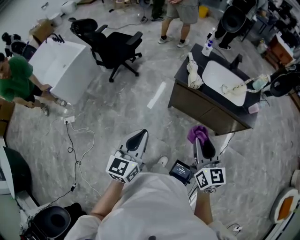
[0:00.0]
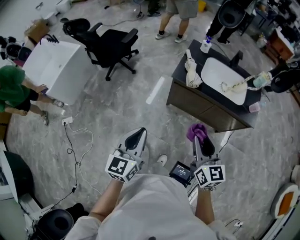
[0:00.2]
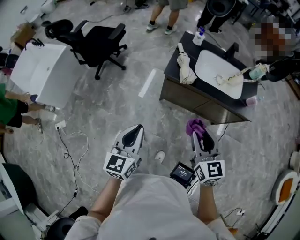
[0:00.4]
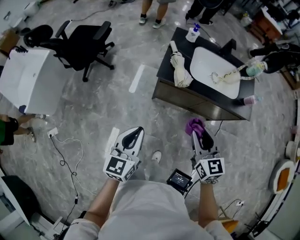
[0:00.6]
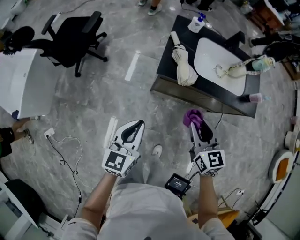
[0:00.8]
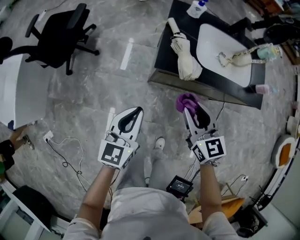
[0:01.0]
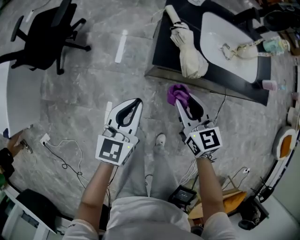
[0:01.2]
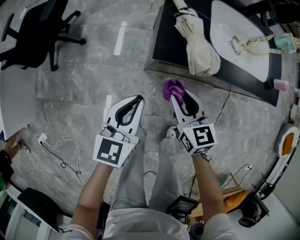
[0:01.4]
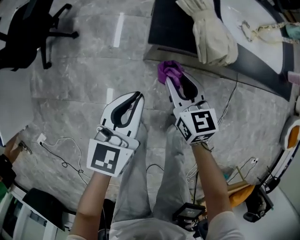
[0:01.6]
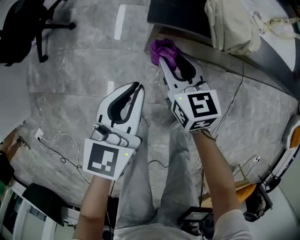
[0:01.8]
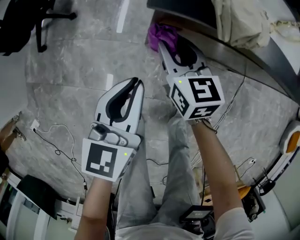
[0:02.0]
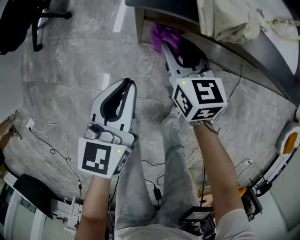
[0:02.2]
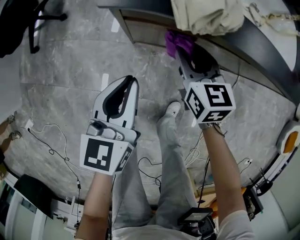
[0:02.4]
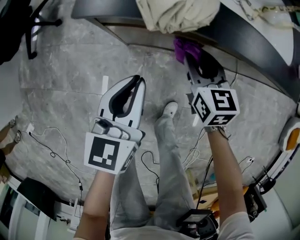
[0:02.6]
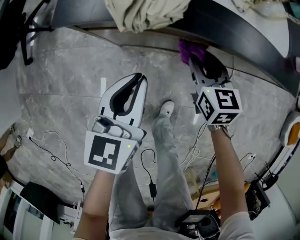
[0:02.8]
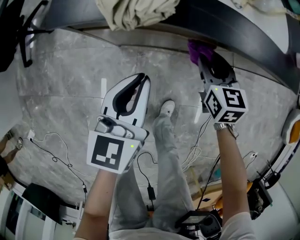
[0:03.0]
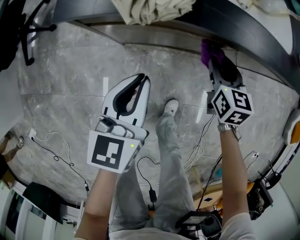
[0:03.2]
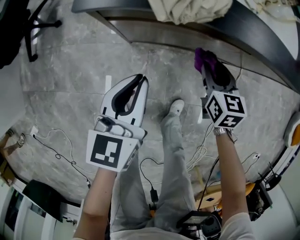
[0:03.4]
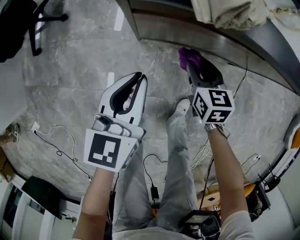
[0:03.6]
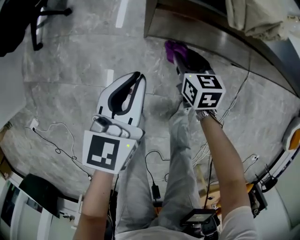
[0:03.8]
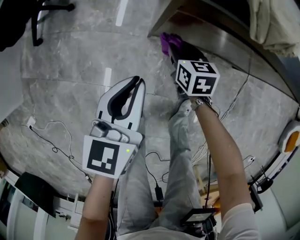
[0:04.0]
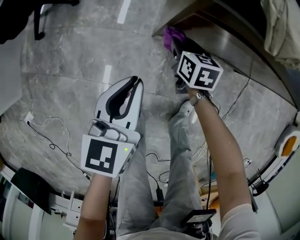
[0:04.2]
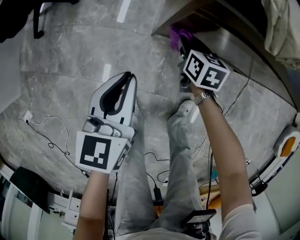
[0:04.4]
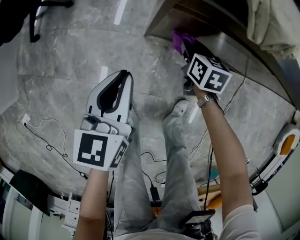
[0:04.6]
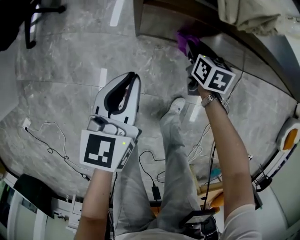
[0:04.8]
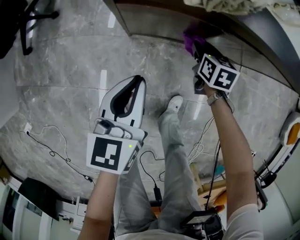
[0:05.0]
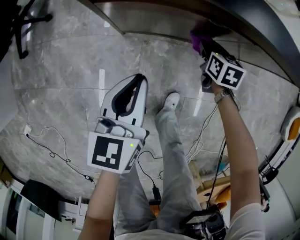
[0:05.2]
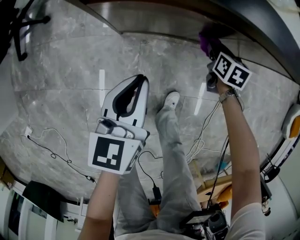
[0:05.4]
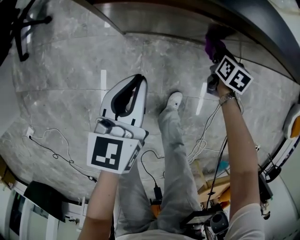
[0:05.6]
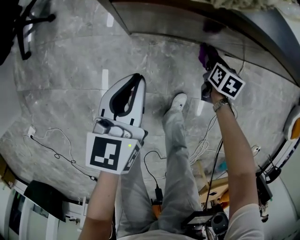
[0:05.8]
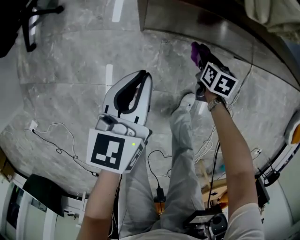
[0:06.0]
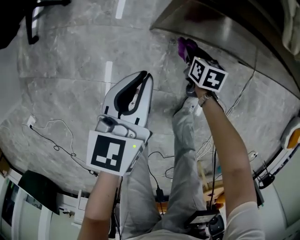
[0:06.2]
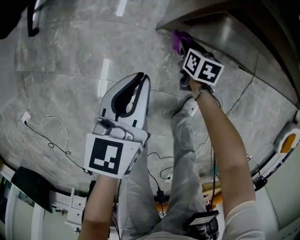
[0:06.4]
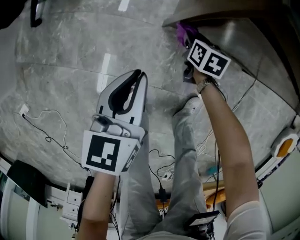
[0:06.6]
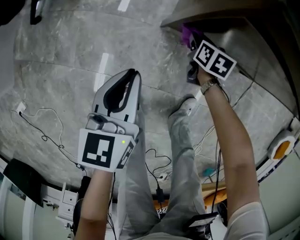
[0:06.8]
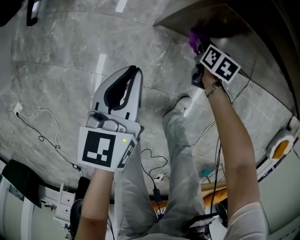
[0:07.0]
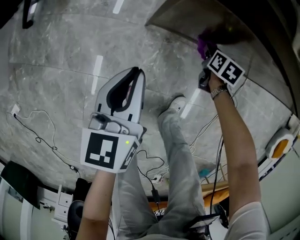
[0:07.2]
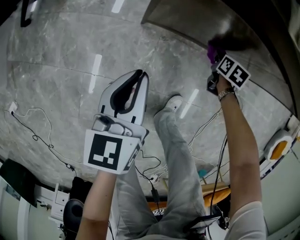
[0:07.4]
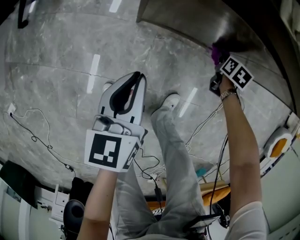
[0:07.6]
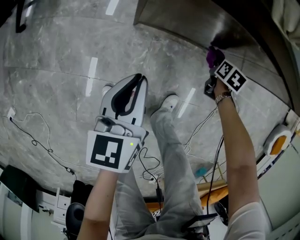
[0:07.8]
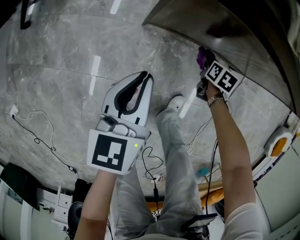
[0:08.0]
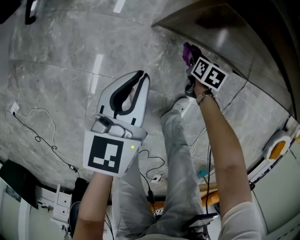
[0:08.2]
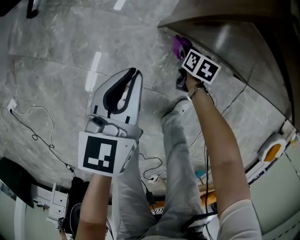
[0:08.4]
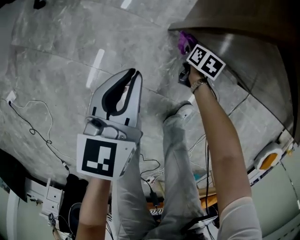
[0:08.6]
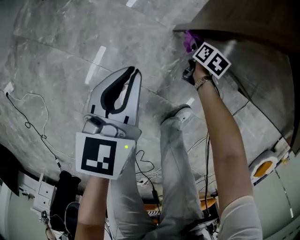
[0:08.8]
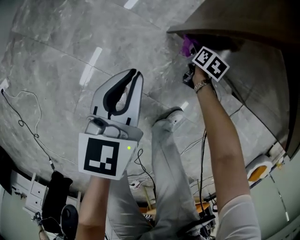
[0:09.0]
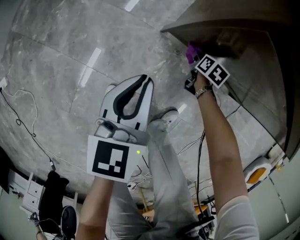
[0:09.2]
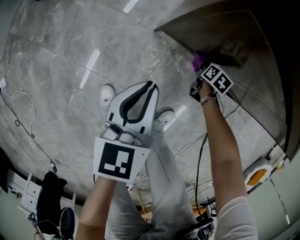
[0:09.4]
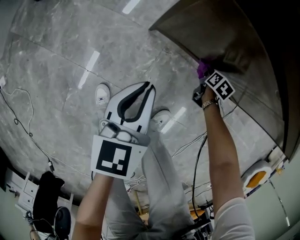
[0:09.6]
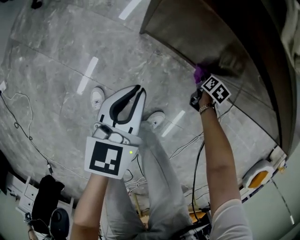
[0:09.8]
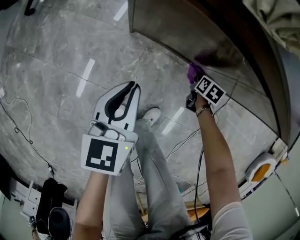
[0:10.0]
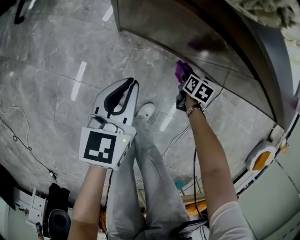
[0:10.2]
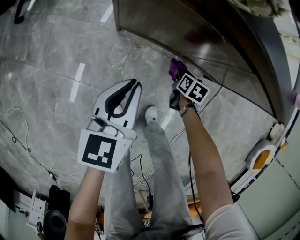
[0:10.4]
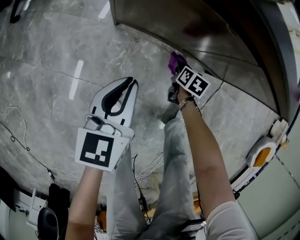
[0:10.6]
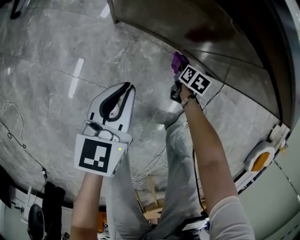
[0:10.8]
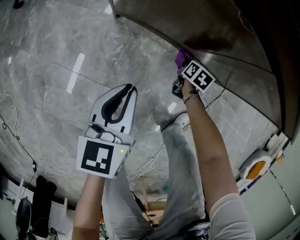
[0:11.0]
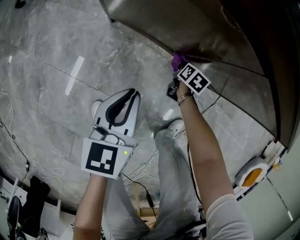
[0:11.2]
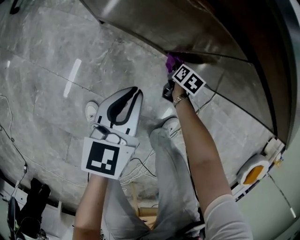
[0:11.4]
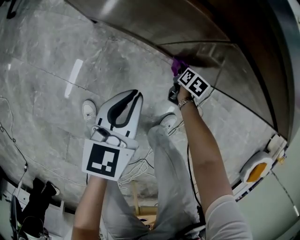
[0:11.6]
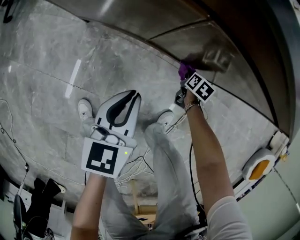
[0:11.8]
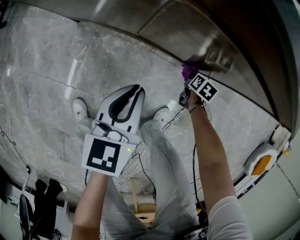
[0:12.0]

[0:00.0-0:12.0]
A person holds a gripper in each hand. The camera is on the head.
0:00.0 to 0:01.6: The right gripper is displaced downward and forward by some 60 cm, and swivels about 20 degrees. The left gripper is displaced forward and downward by approximately 50 cm, and changes its angle by some 30 degrees.
0:01.6 to 0:03.0: Both grippers move to the right, about 20 cm.
0:03.0 to 0:04.4: The left gripper shifts about 20 cm to the left. Meanwhile the right gripper heads to the left and downward, covering about 30 cm.
0:04.4 to 0:06.0: The right gripper heads to the right and downward, covering some 20 cm. The left gripper goes approximately 10 cm to the right.
0:06.0 to 0:07.6: The right gripper travels to the right and forward by about 15 cm, while the left gripper moves approximately 10 cm to the left and comes back.
0:07.6 to 0:09.0: The left gripper shifts about 15 cm to the left, while the right gripper shifts about 30 cm to the left.
0:09.0 to 0:10.4: The right gripper travels to the right and backward by roughly 25 cm. Meanwhile the left gripper moves to the right, roughly 25 cm.
0:10.4 to 0:12.0: Both grippers travel together to the right, about 30 cm.

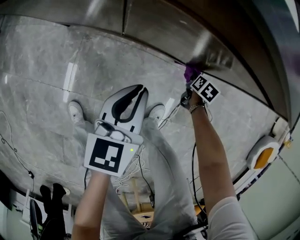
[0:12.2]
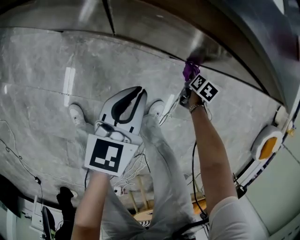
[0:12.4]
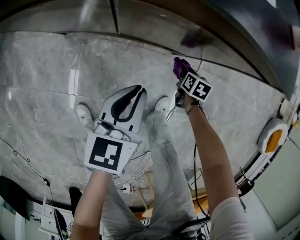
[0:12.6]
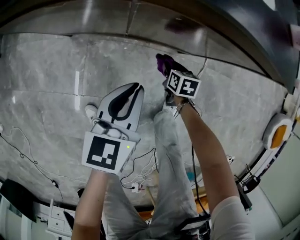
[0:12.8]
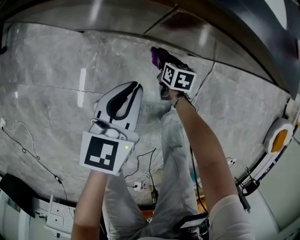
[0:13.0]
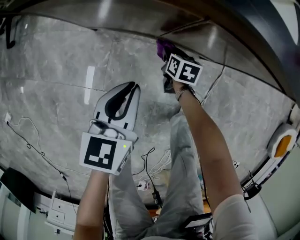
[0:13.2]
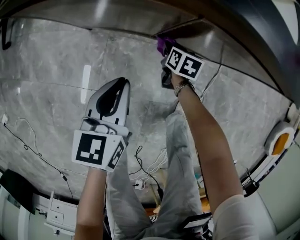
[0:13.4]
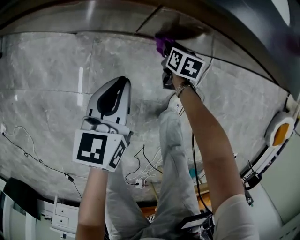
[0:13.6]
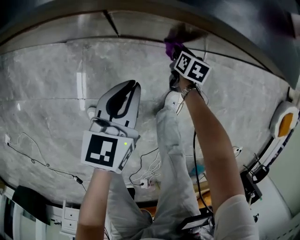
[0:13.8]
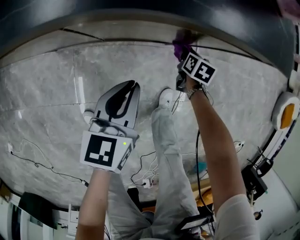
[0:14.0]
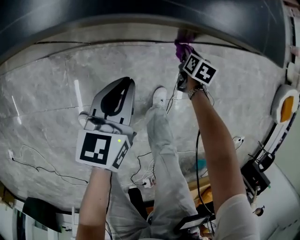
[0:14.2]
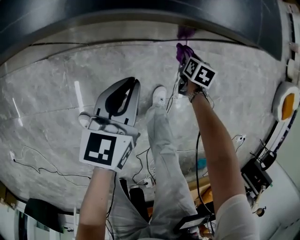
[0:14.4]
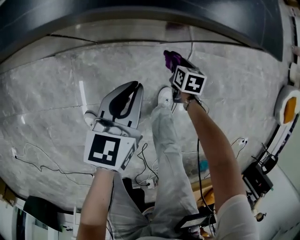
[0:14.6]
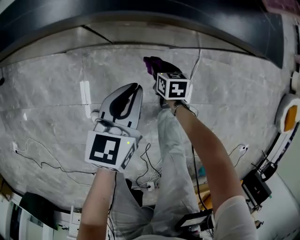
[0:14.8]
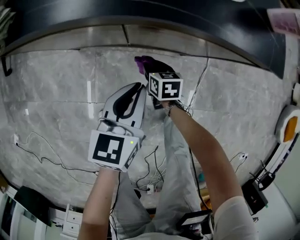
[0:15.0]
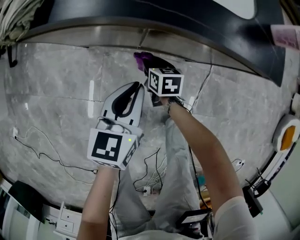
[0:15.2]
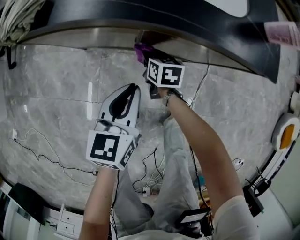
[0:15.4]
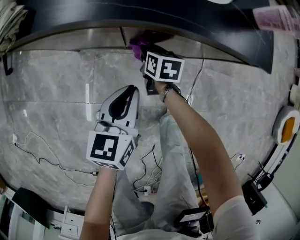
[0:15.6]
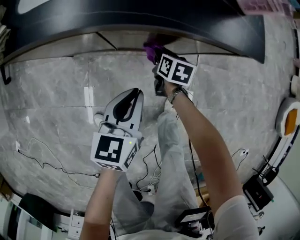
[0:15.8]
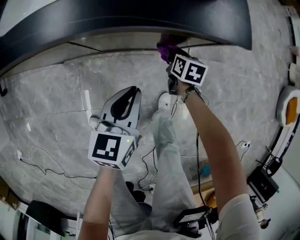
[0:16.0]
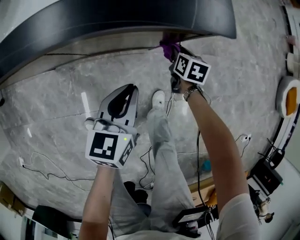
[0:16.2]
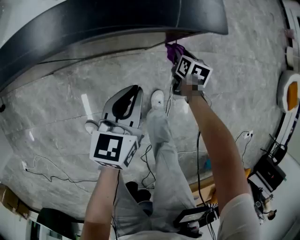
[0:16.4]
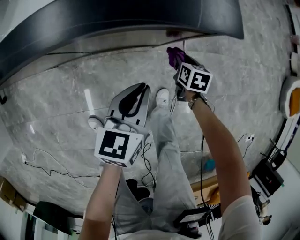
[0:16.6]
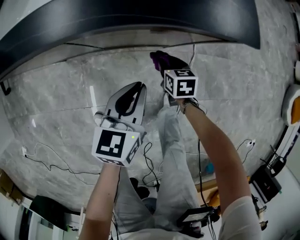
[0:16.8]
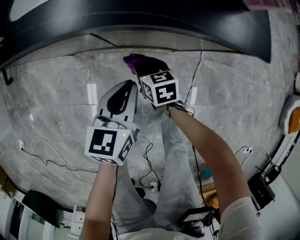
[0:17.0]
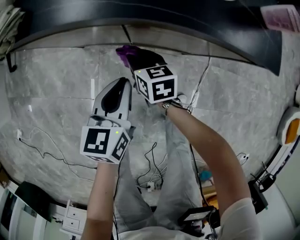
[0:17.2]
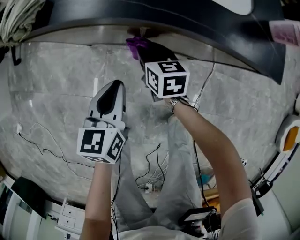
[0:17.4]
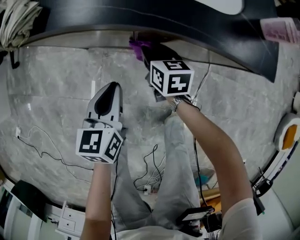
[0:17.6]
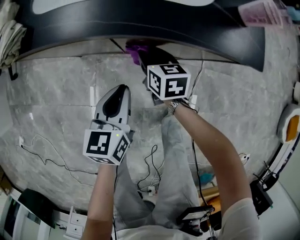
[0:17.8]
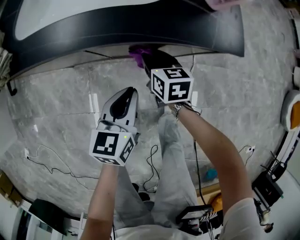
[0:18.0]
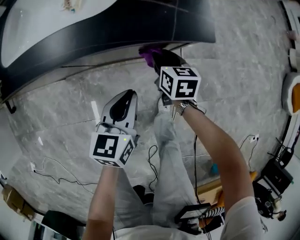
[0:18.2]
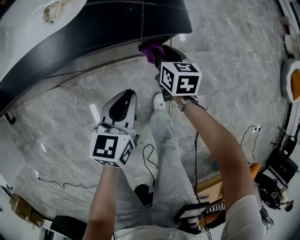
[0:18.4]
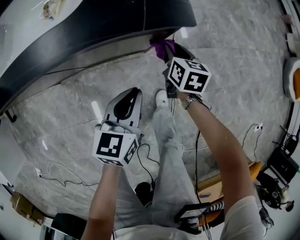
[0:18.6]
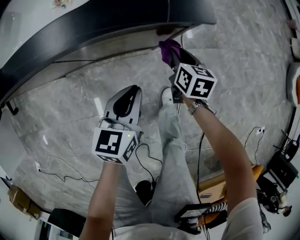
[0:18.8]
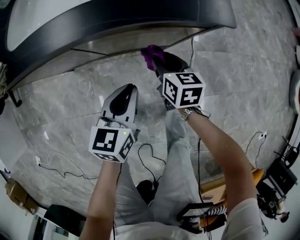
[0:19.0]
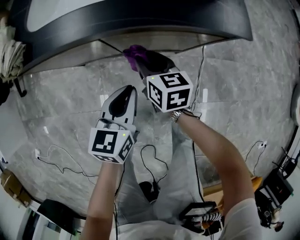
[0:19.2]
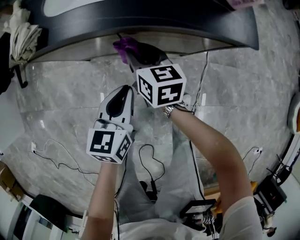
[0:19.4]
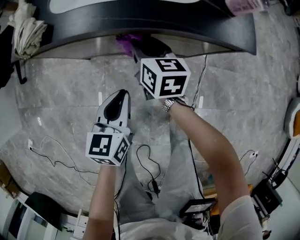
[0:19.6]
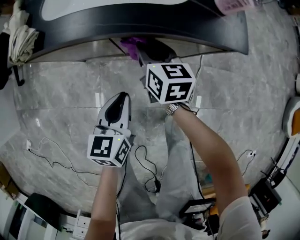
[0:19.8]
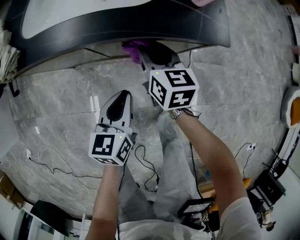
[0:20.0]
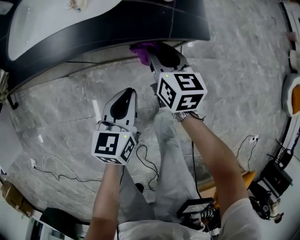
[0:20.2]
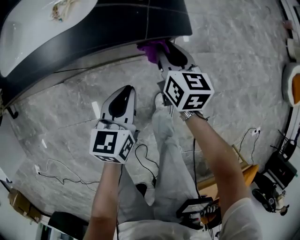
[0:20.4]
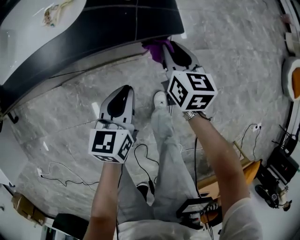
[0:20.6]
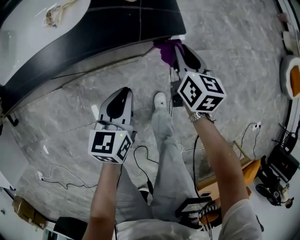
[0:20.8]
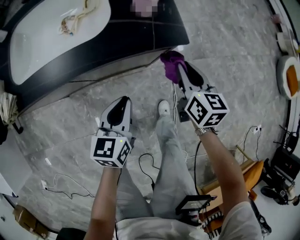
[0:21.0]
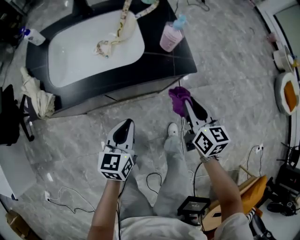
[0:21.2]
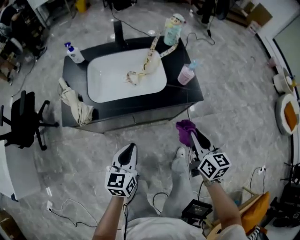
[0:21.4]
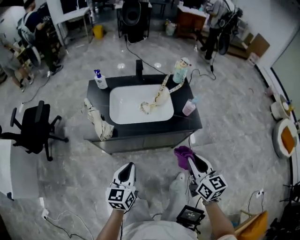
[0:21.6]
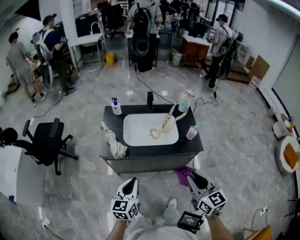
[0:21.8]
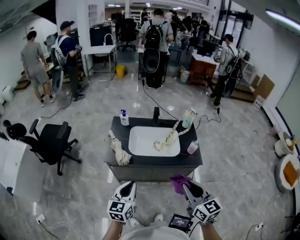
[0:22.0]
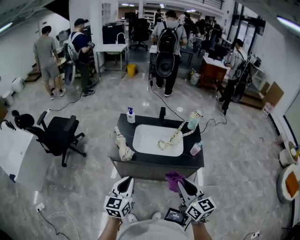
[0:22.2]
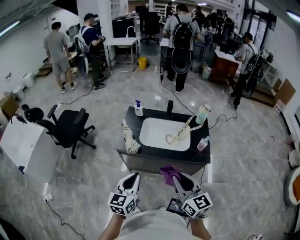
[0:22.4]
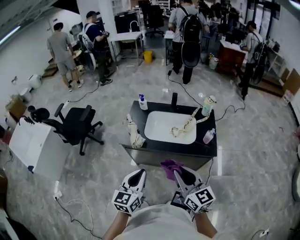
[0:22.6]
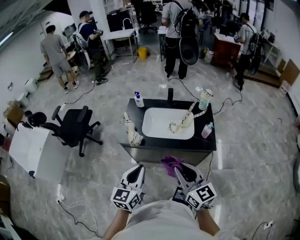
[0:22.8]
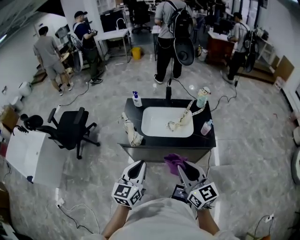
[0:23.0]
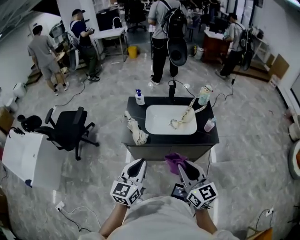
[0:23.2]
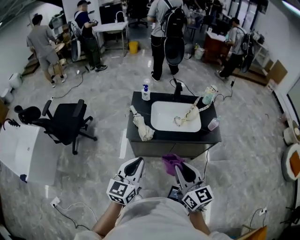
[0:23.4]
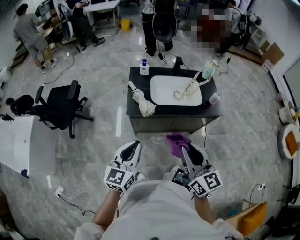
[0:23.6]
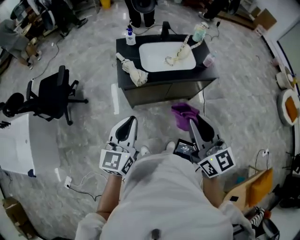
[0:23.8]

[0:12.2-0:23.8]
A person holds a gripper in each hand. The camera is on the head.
0:12.2 to 0:13.6: The right gripper moves to the left, approximately 25 cm. Meanwhile the left gripper moves to the left, about 10 cm.
0:15.0 to 0:16.6: The right gripper changes place by approximately 30 cm, and turns by approximately 20 degrees; the left gripper ends up some 20 cm from where it was.
0:16.6 to 0:18.0: The right gripper turns by about 30 degrees.
0:18.0 to 0:19.4: The left gripper changes place by about 10 cm. The right gripper changes place by approximately 15 cm.
0:19.4 to 0:21.0: The right gripper is displaced to the right by roughly 35 cm, and changes its angle by roughly 30 degrees, while the left gripper heads to the right, covering approximately 15 cm.
0:21.0 to 0:22.4: The grippers both shift upward by roughly 50 cm. The left gripper changes its angle by about 30 degrees. The right gripper changes its angle by roughly 50 degrees.
0:22.4 to 0:23.8: The right gripper moves to the left and backward, roughly 20 cm. Meanwhile the left gripper travels to the left by about 20 cm.
